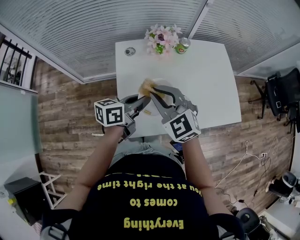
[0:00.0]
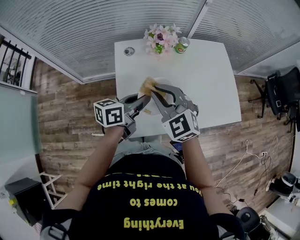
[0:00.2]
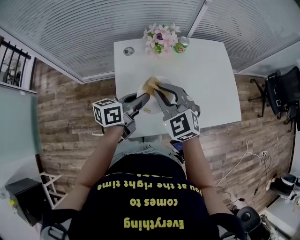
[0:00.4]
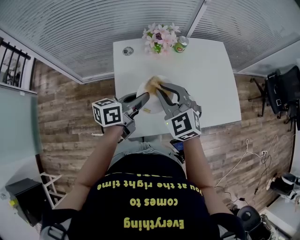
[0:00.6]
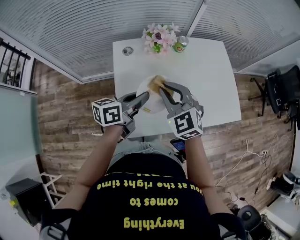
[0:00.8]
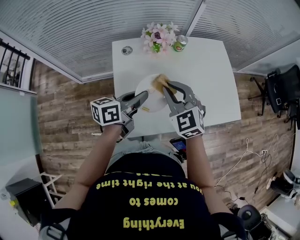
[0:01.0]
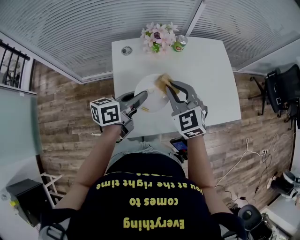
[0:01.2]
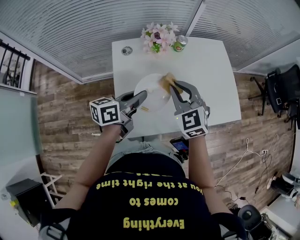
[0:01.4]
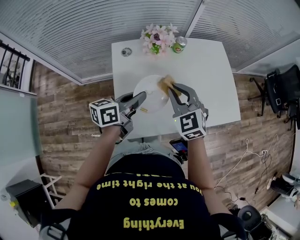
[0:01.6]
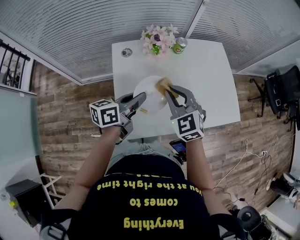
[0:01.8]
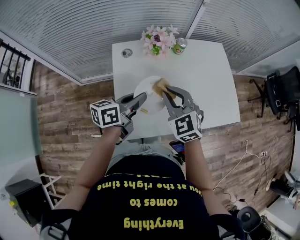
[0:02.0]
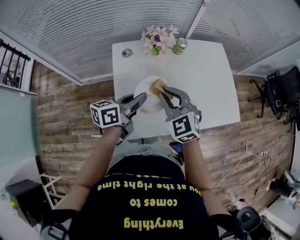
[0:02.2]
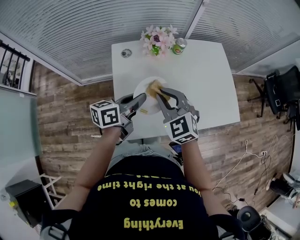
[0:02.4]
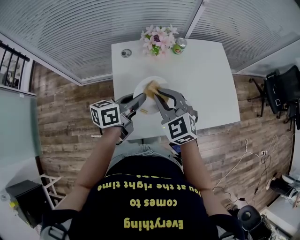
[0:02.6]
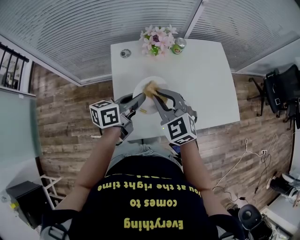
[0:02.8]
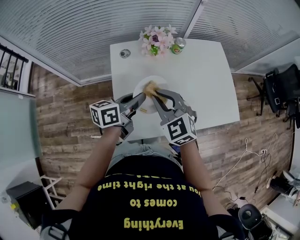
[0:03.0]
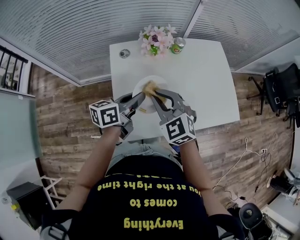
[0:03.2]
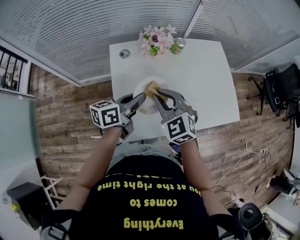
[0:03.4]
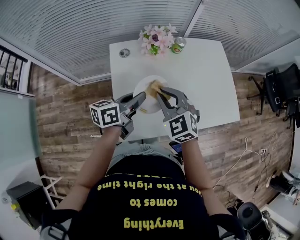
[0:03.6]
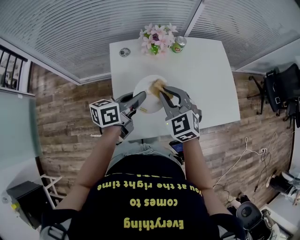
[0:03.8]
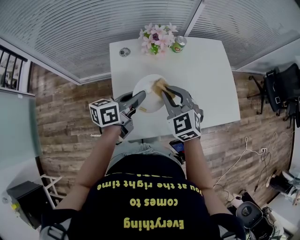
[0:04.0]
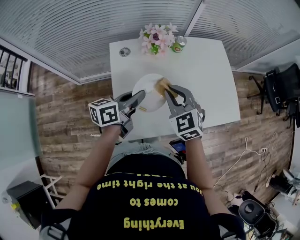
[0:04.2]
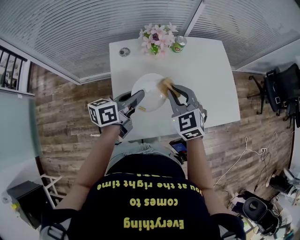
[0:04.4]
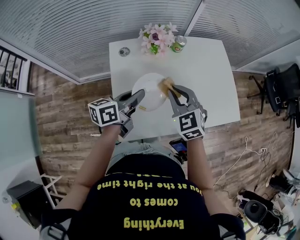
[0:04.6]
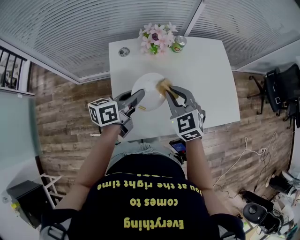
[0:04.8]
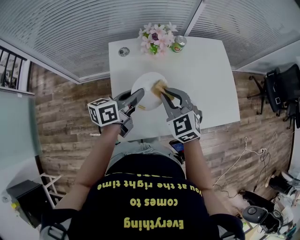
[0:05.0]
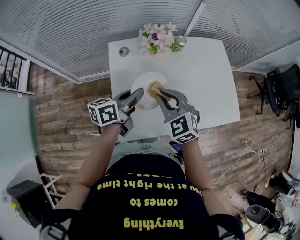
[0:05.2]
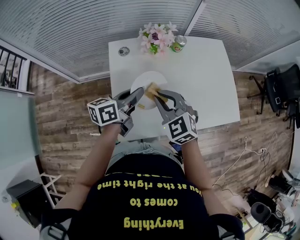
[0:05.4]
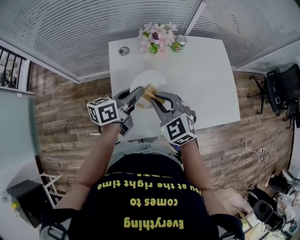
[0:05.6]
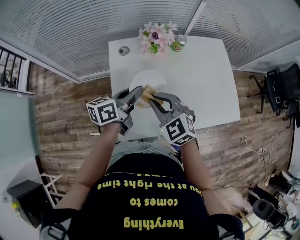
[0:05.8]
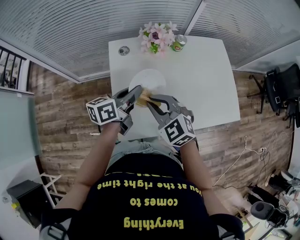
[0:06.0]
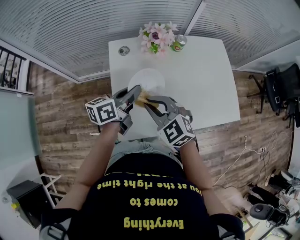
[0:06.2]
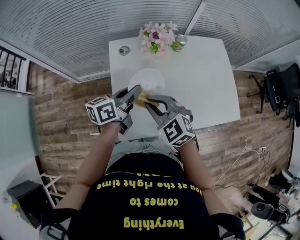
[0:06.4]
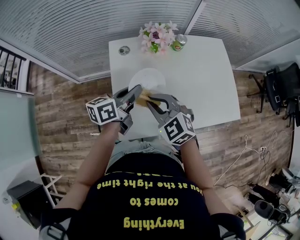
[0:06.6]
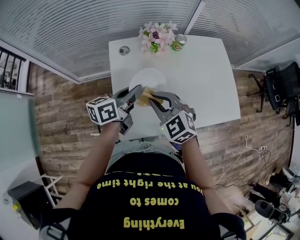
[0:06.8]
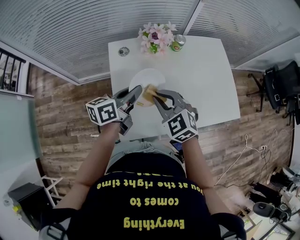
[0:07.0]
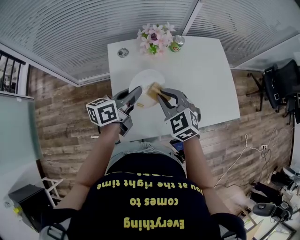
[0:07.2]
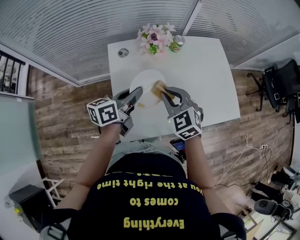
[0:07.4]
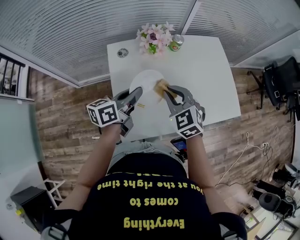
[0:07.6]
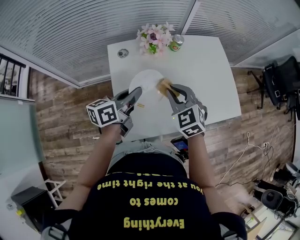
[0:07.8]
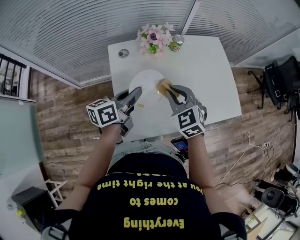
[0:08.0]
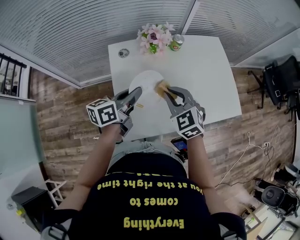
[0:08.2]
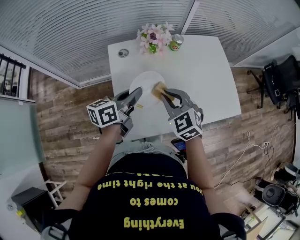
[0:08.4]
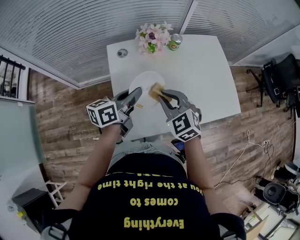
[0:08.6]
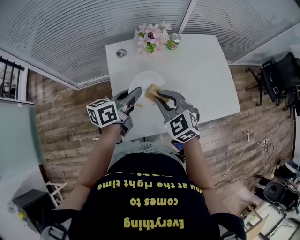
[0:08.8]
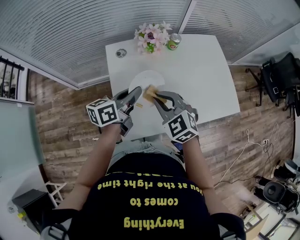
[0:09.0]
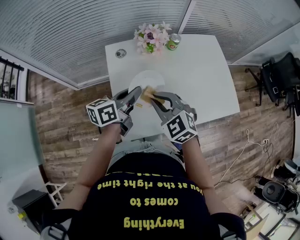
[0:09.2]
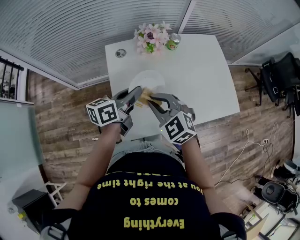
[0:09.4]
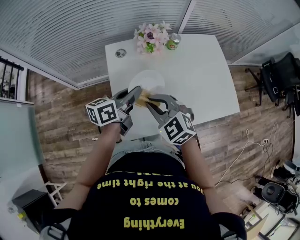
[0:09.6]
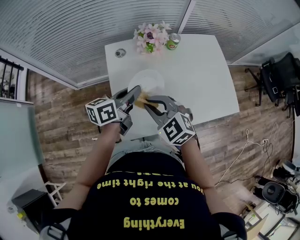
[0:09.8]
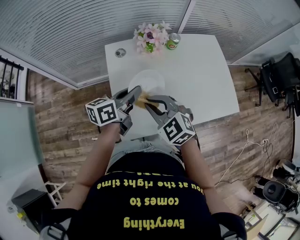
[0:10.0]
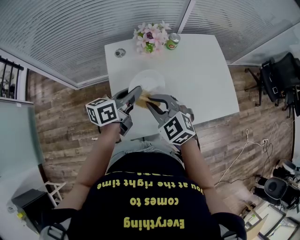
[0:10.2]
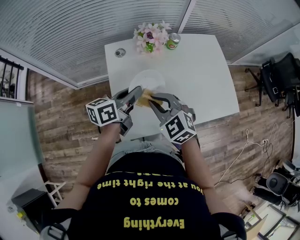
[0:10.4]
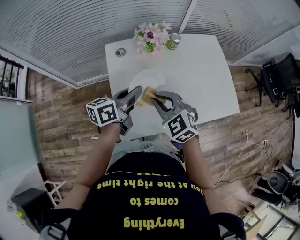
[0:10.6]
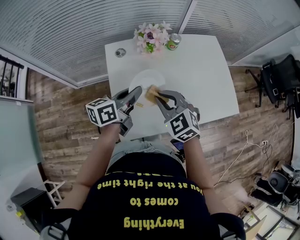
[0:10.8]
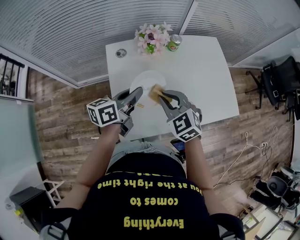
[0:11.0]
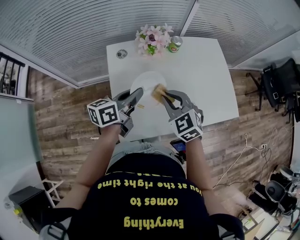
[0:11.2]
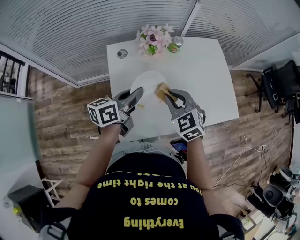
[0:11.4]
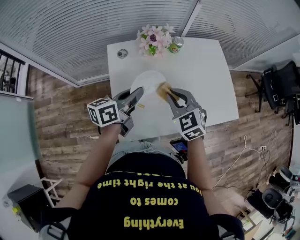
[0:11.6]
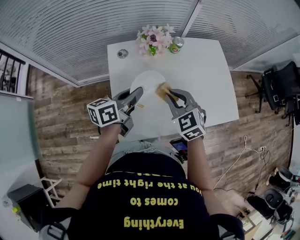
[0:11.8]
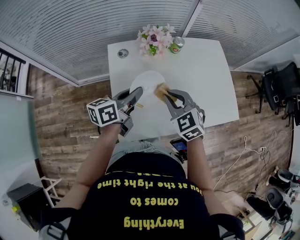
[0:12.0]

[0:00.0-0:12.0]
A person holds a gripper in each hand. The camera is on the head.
0:00.0 to 0:01.6: The right gripper is displaced to the right by approximately 10 cm.
0:01.6 to 0:03.0: The right gripper heads to the left, covering about 5 cm.
0:03.0 to 0:04.4: The right gripper is displaced to the right by some 5 cm.
0:04.4 to 0:06.0: The right gripper moves to the left and backward, some 10 cm.
0:06.0 to 0:07.6: The right gripper heads to the right, covering approximately 5 cm.
0:07.6 to 0:09.0: The right gripper changes place by some 5 cm.
0:09.0 to 0:10.4: The grippers stay close to where they were, moving slightly.
0:10.4 to 0:12.0: The right gripper goes approximately 5 cm to the right.

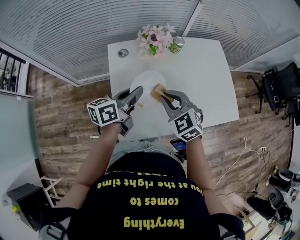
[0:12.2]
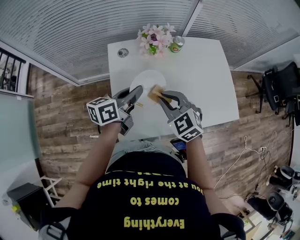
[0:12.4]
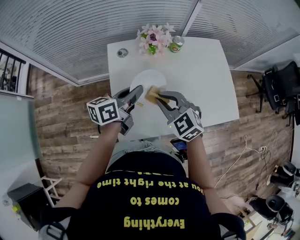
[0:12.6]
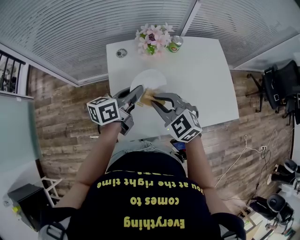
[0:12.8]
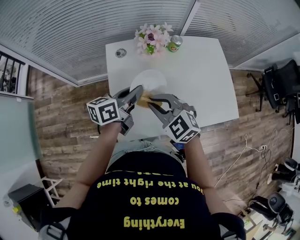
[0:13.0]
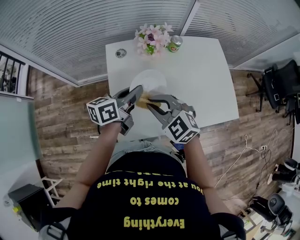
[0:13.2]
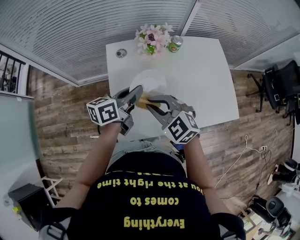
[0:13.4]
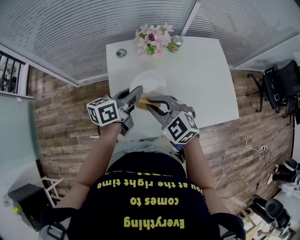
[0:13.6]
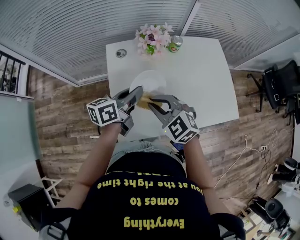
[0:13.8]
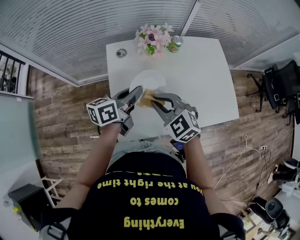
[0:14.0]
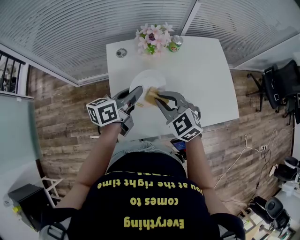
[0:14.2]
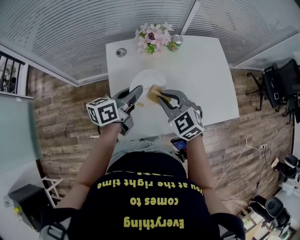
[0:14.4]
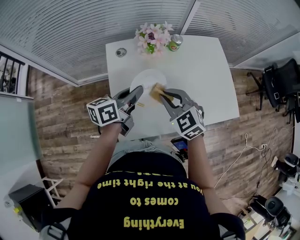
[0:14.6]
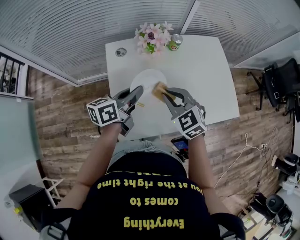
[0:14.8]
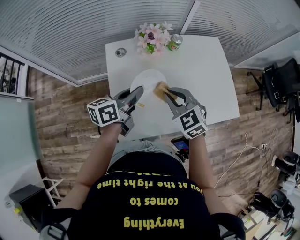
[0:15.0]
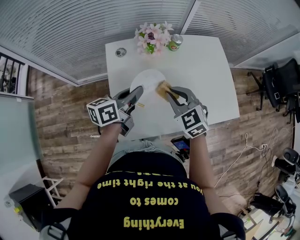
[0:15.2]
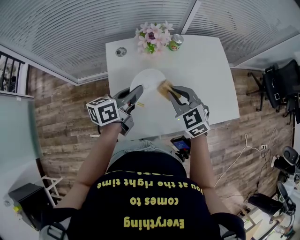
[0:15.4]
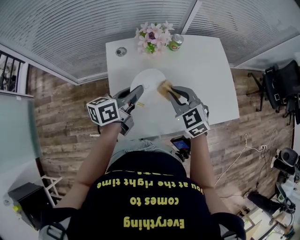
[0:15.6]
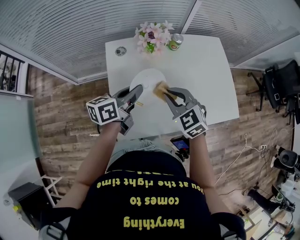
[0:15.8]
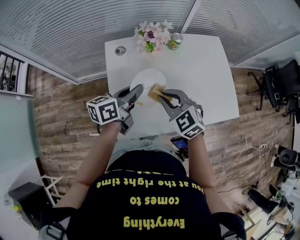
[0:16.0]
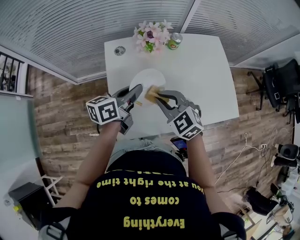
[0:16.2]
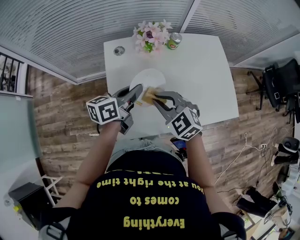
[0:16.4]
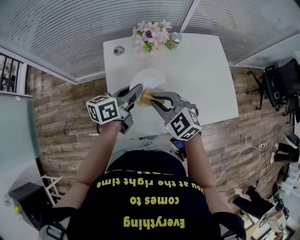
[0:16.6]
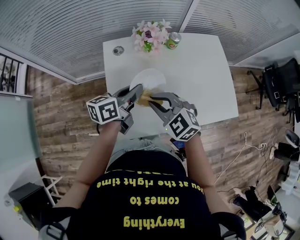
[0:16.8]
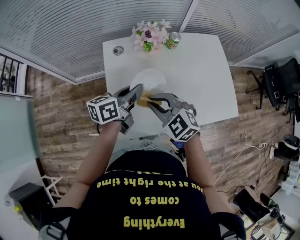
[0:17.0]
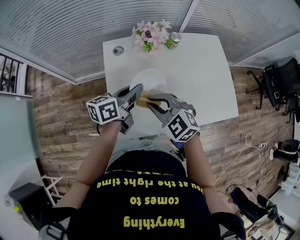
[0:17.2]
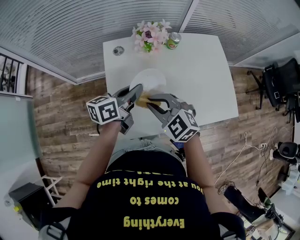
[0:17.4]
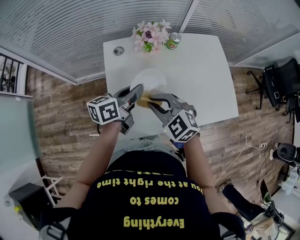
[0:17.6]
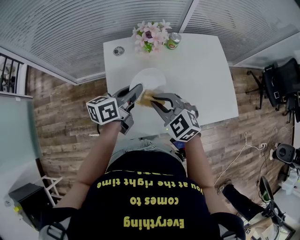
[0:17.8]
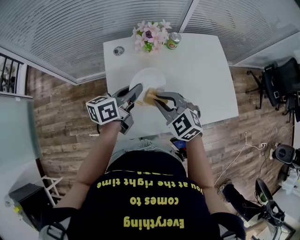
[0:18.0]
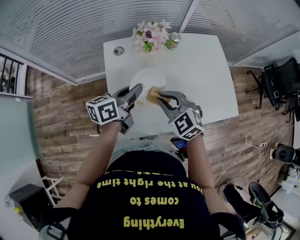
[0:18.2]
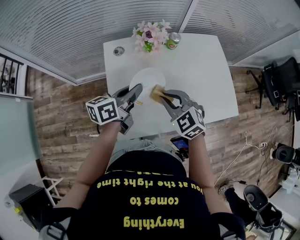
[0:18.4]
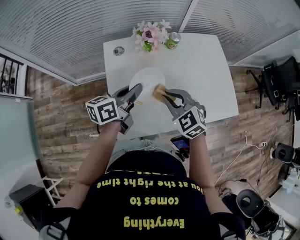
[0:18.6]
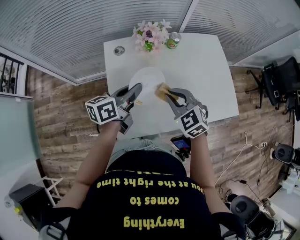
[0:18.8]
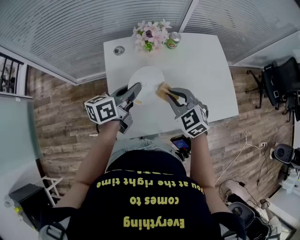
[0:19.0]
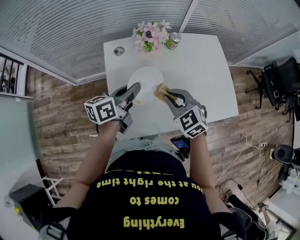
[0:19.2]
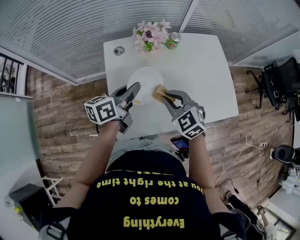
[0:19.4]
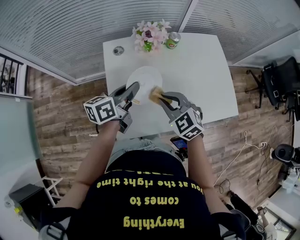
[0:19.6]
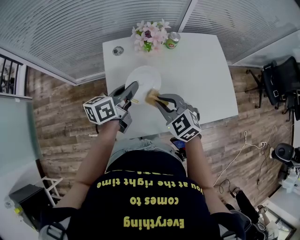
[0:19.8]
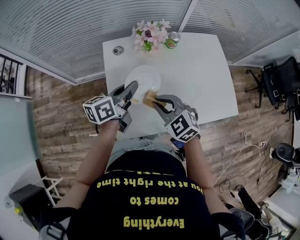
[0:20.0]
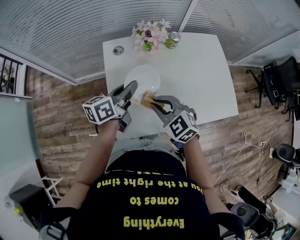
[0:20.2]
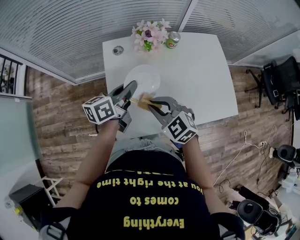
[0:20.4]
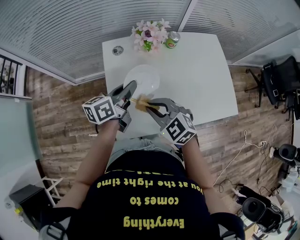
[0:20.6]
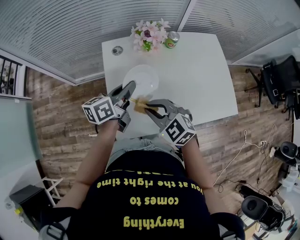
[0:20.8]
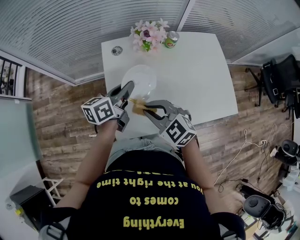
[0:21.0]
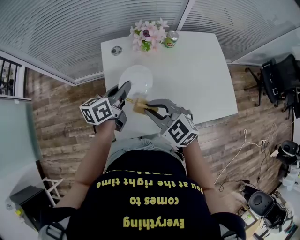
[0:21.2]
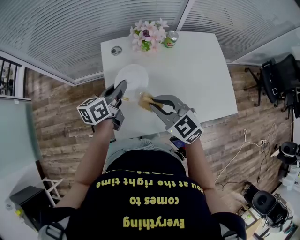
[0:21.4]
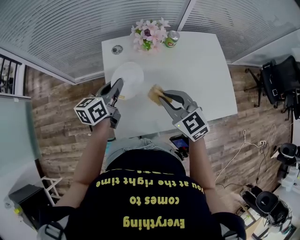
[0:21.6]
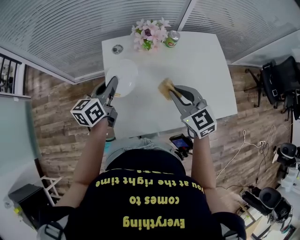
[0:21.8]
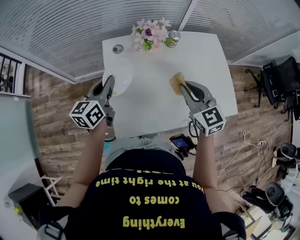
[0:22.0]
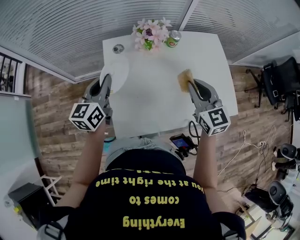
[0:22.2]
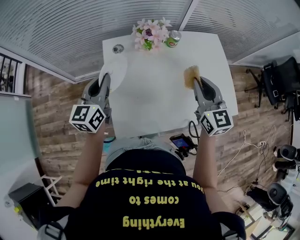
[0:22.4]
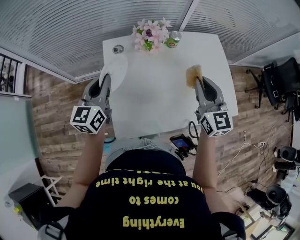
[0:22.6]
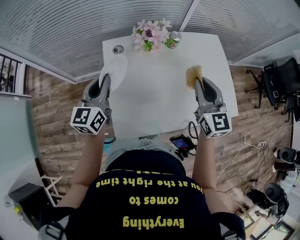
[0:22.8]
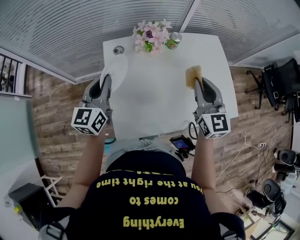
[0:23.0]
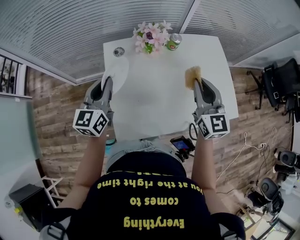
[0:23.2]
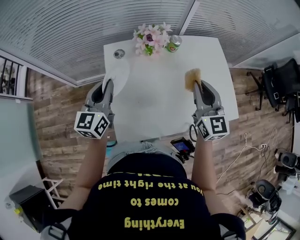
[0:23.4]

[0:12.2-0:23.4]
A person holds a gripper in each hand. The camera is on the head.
0:12.2 to 0:13.8: The right gripper changes place by some 5 cm.
0:13.8 to 0:15.4: The right gripper goes approximately 10 cm to the right and forward.
0:15.4 to 0:17.0: The right gripper travels to the left by approximately 5 cm.
0:17.0 to 0:18.6: The right gripper is displaced to the right by approximately 5 cm.
0:18.6 to 0:20.2: The right gripper changes place by about 5 cm.
0:20.2 to 0:21.8: The right gripper moves to the right, about 5 cm. The left gripper moves to the left, roughly 5 cm.
0:21.8 to 0:23.4: The left gripper swivels some 30 degrees, while the right gripper travels to the right and upward by some 10 cm, and changes its angle by approximately 30 degrees.

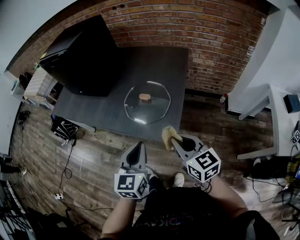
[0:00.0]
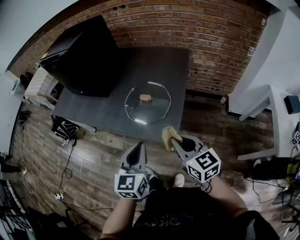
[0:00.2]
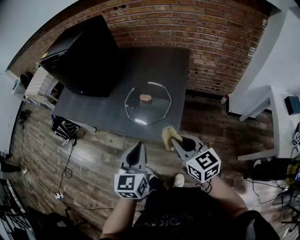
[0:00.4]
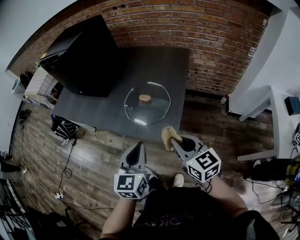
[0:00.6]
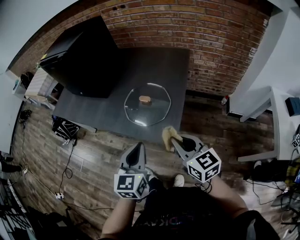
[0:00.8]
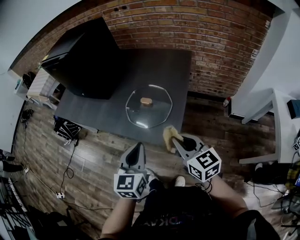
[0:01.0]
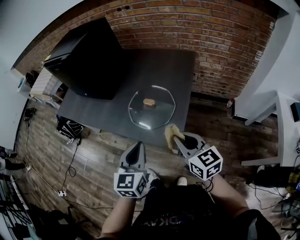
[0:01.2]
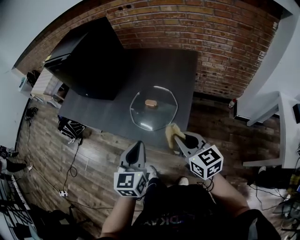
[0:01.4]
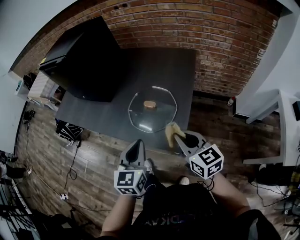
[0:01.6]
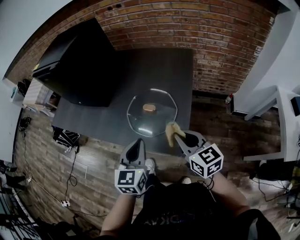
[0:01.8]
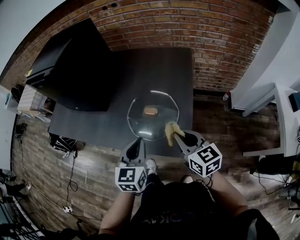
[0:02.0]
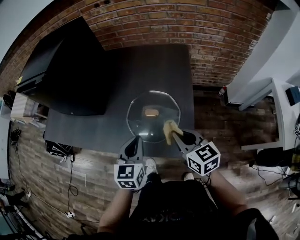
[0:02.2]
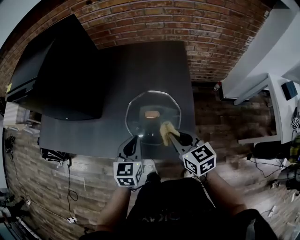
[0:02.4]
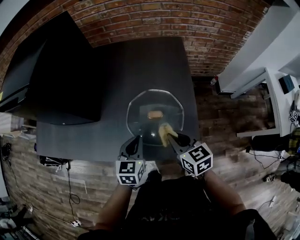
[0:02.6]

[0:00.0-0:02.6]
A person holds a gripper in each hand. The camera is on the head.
0:00.0 to 0:01.2: The grippers make only small movements.
0:01.2 to 0:02.6: The left gripper goes some 25 cm forward and downward, and rotates about 30 degrees, while the right gripper moves forward, to the left and downward, approximately 20 cm, and changes its angle by some 20 degrees.
